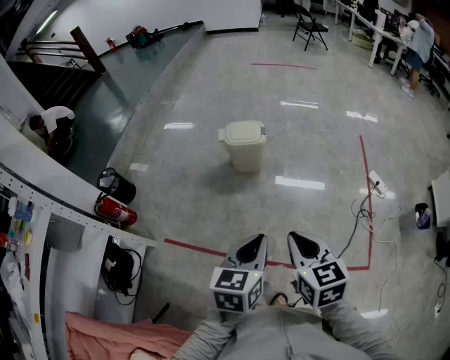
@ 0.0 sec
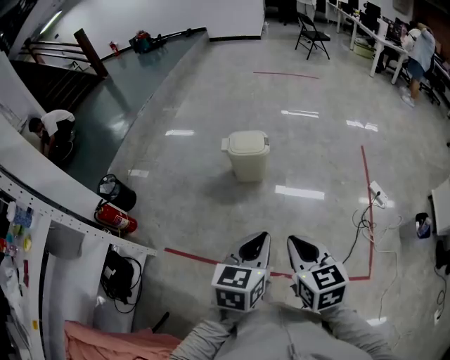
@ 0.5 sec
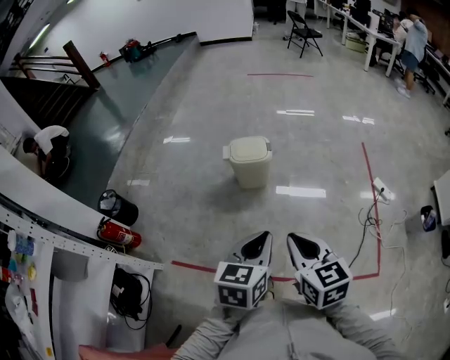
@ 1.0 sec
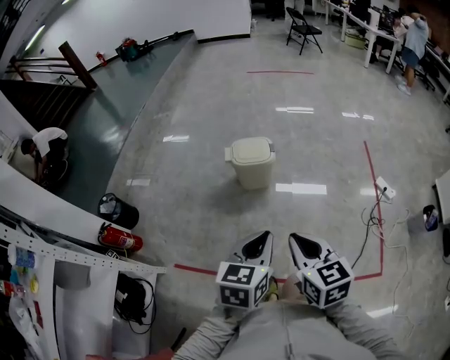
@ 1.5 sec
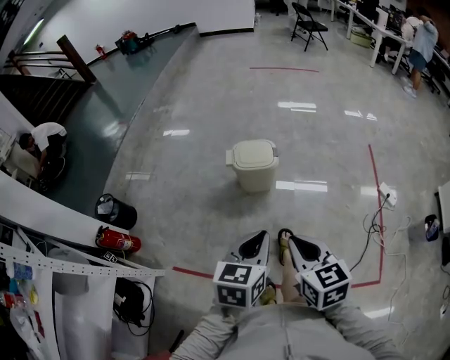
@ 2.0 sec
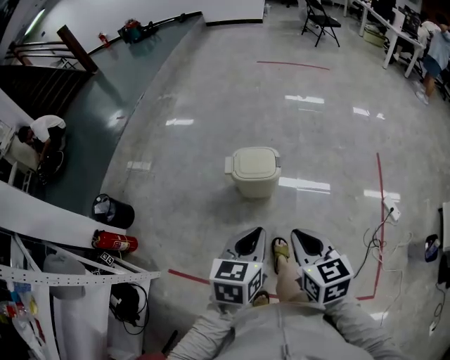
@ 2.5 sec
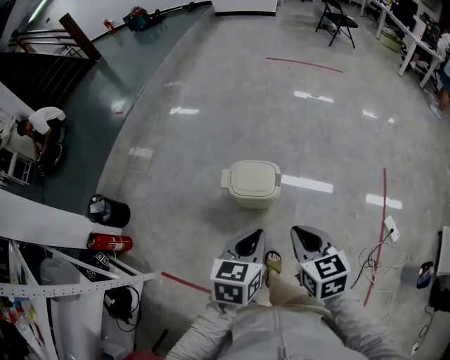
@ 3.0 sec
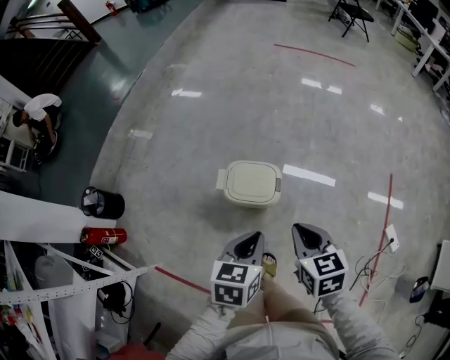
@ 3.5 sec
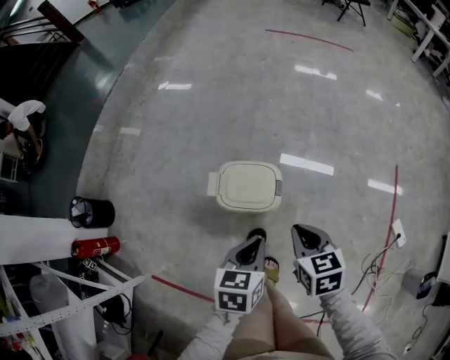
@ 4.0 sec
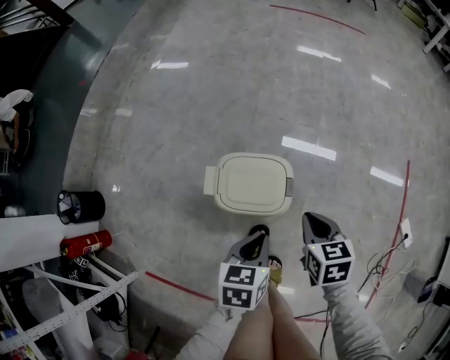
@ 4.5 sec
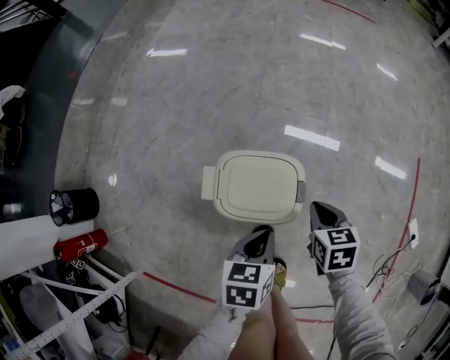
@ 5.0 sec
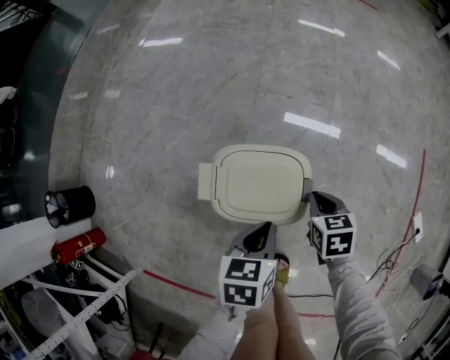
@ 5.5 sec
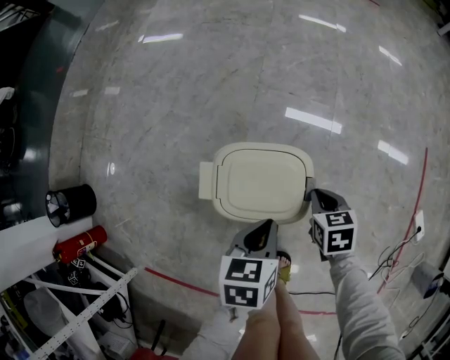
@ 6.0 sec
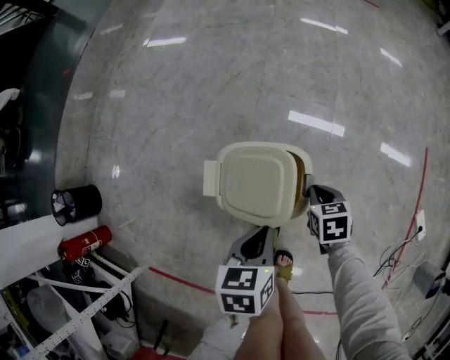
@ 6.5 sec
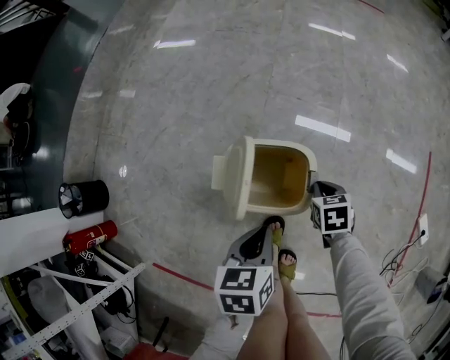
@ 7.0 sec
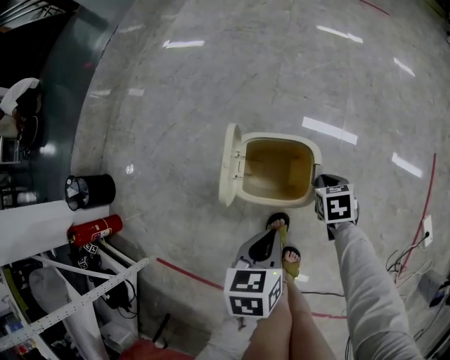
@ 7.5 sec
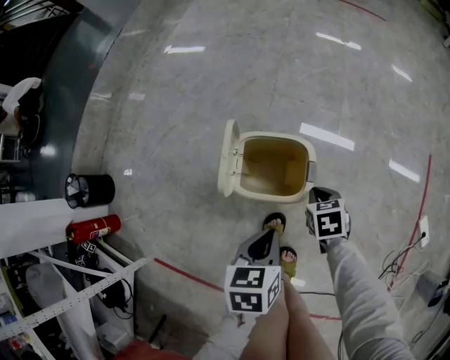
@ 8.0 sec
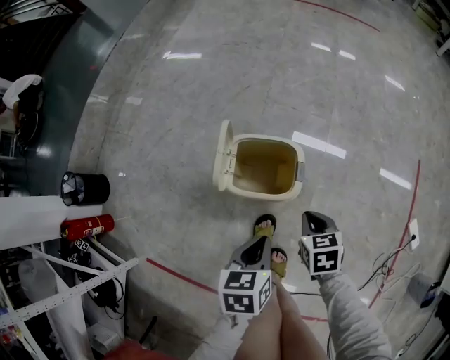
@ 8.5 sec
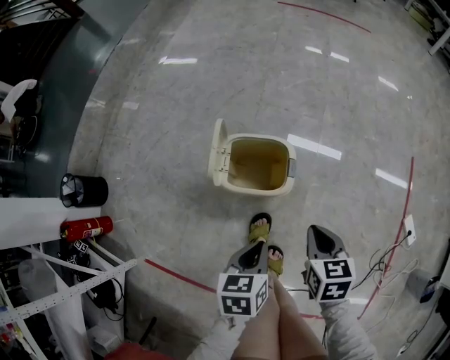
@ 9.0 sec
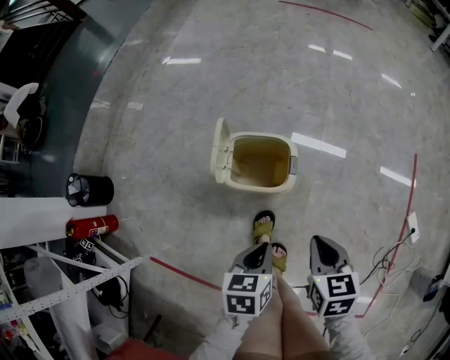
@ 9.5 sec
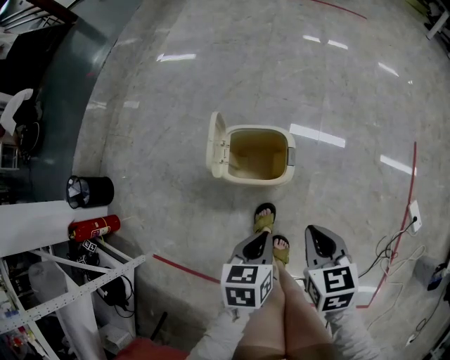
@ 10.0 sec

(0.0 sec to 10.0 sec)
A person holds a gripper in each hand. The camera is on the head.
0.0 sec - 2.0 sec: Both grippers move forward and to the left, roughly 20 cm.
2.0 sec - 4.0 sec: Both grippers travel together forward and downward, some 40 cm.
4.0 sec - 6.0 sec: The grippers both shift downward and forward by roughly 25 cm.
6.0 sec - 8.0 sec: The left gripper is displaced backward and upward by approximately 10 cm; the right gripper shifts by roughly 5 cm.
8.0 sec - 10.0 sec: The left gripper travels backward by approximately 5 cm. Meanwhile the right gripper is displaced upward and backward by some 25 cm.

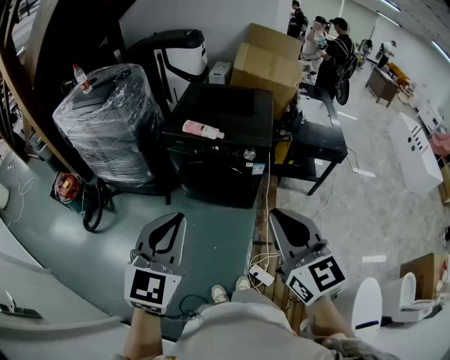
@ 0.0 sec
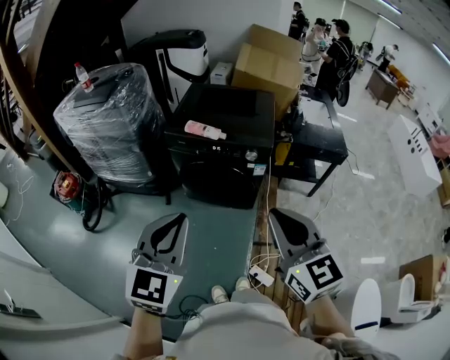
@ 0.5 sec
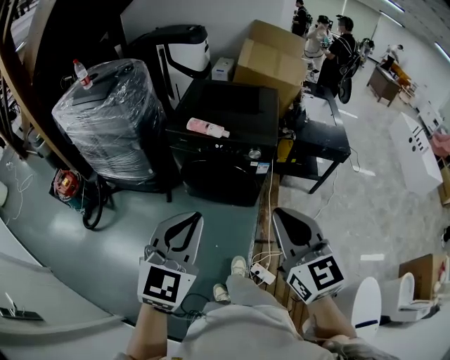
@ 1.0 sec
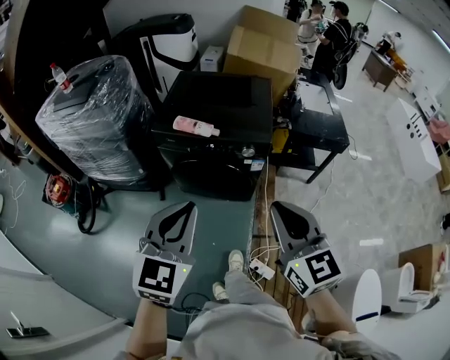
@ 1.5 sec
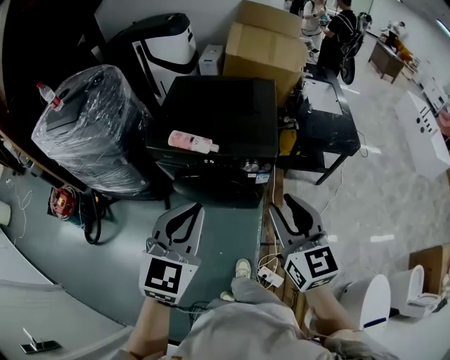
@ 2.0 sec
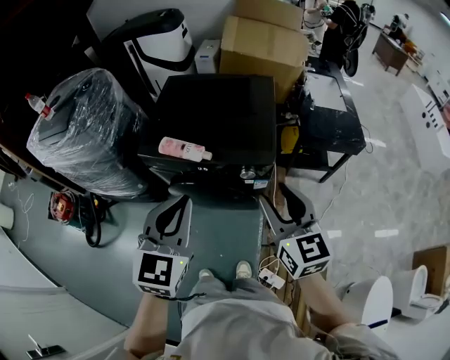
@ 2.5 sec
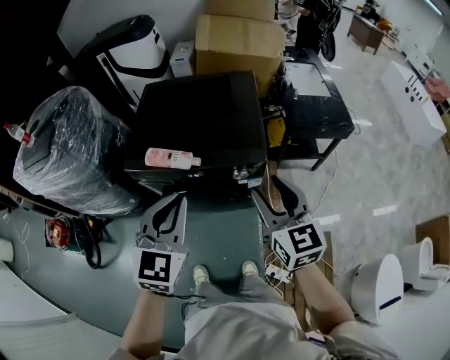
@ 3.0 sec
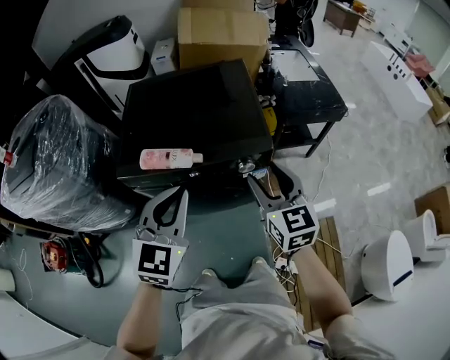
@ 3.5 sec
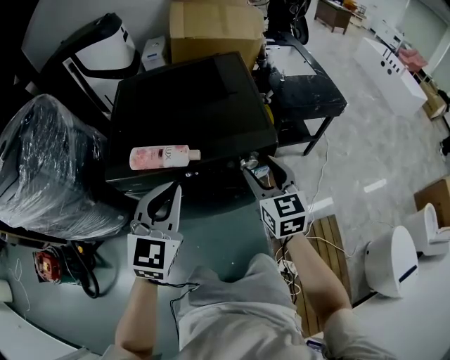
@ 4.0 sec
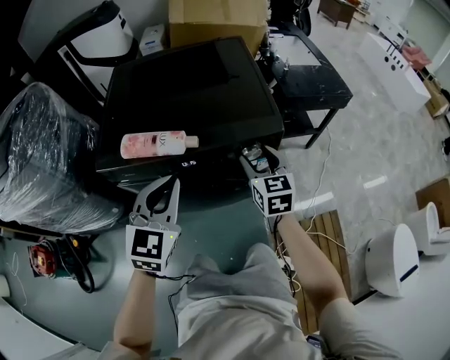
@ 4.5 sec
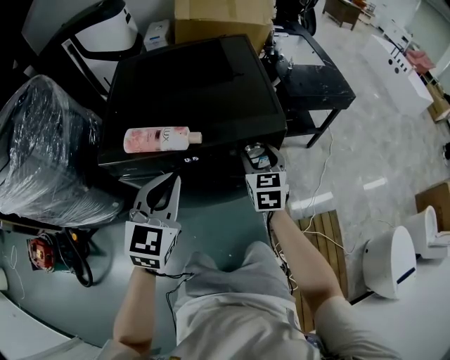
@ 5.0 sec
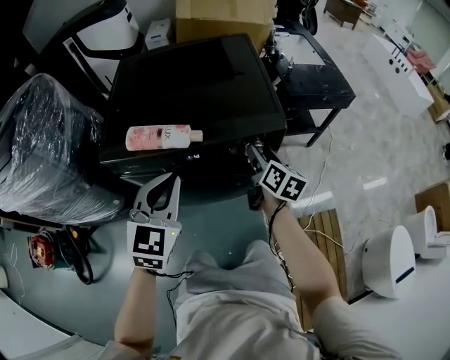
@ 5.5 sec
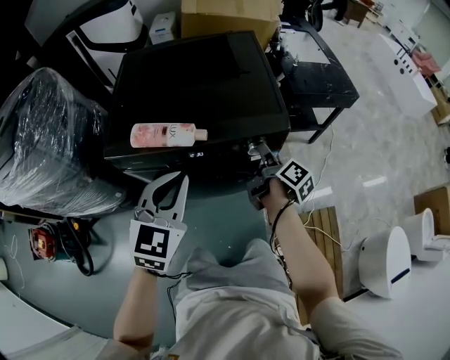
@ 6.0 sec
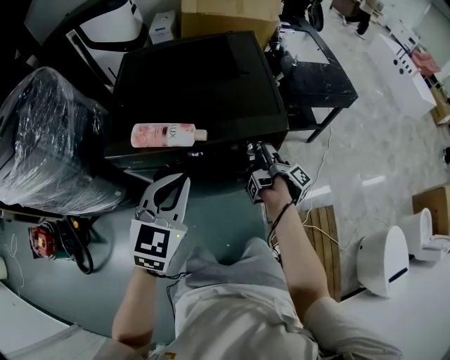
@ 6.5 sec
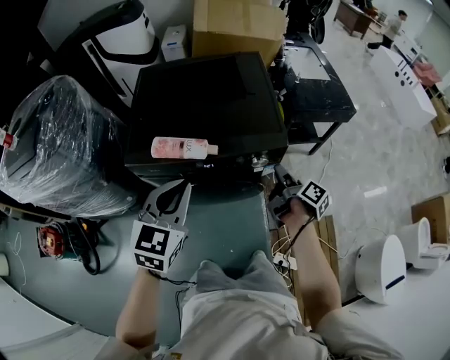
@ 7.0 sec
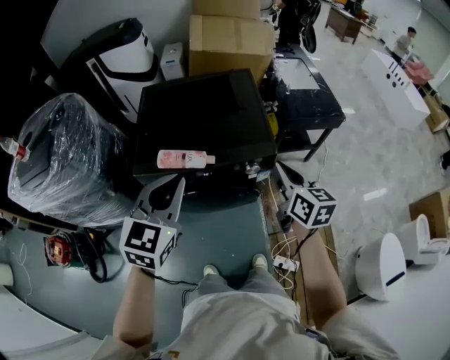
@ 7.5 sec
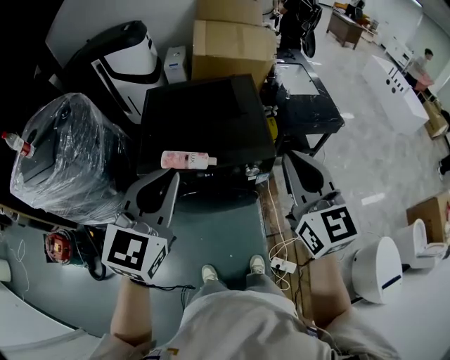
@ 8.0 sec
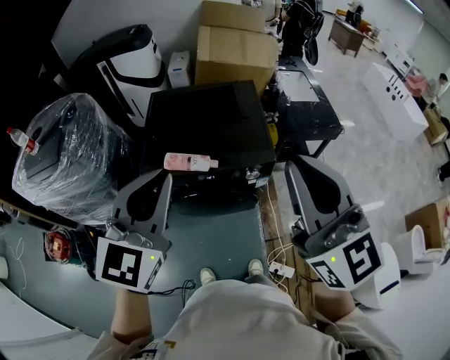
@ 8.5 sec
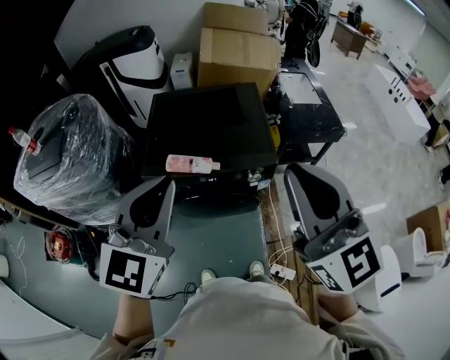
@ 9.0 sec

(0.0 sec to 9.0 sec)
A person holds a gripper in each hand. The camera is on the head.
0.0 sec - 2.0 sec: Both grippers move forward, roughly 20 cm. The right gripper opens up.
2.0 sec - 4.5 sec: Both grippers move downward and forward, some 35 cm. The right gripper turns by approximately 20 degrees, and opens its fingers.
4.5 sec - 7.0 sec: The right gripper goes some 5 cm to the right, moves approximately 5 cm downward and comes back, rolls clockwise, seen from behind, by approximately 80 degrees, and closes; the left gripper is displaced upward by about 10 cm.
7.0 sec - 9.0 sec: The right gripper is displaced upward by about 50 cm, rolls counterclockwise, seen from behind, by about 90 degrees, and closes. Meanwhile the left gripper moves upward, some 25 cm, and rotates some 20 degrees.

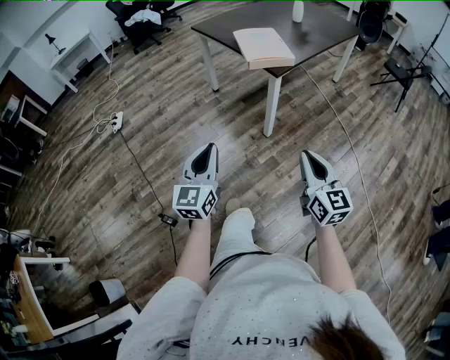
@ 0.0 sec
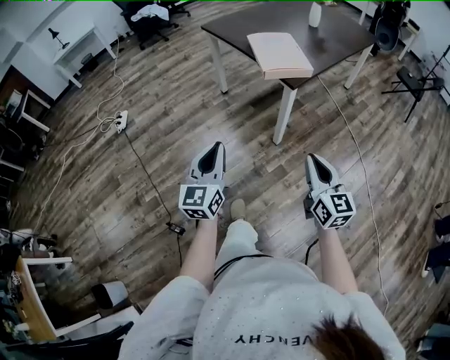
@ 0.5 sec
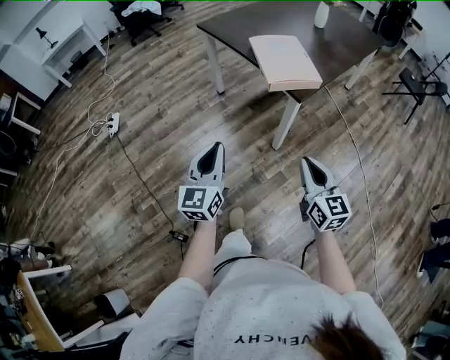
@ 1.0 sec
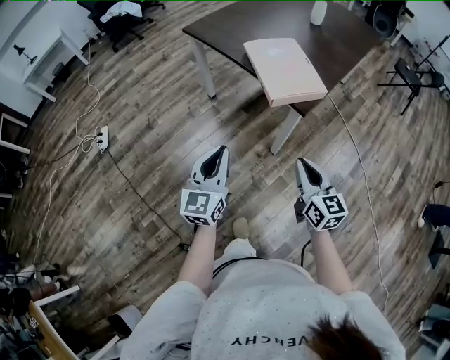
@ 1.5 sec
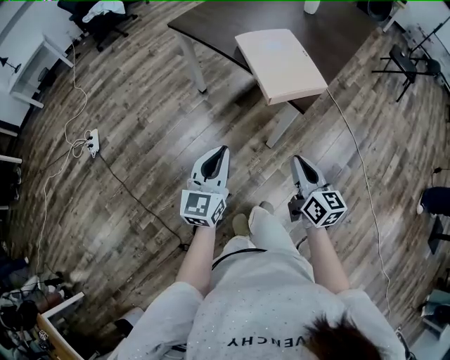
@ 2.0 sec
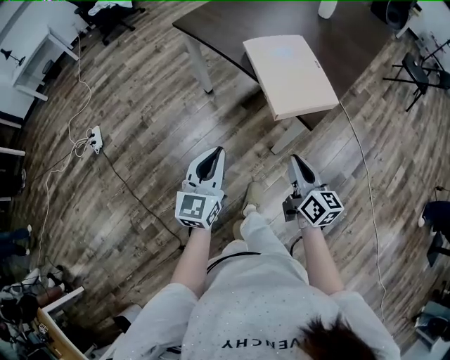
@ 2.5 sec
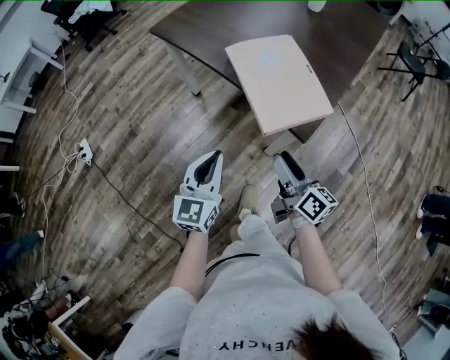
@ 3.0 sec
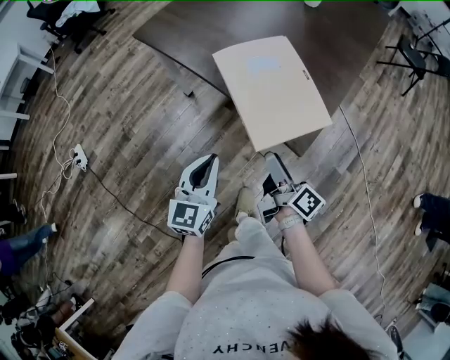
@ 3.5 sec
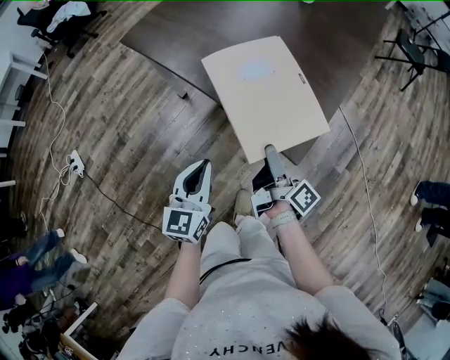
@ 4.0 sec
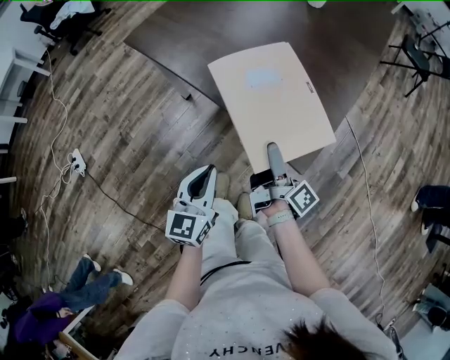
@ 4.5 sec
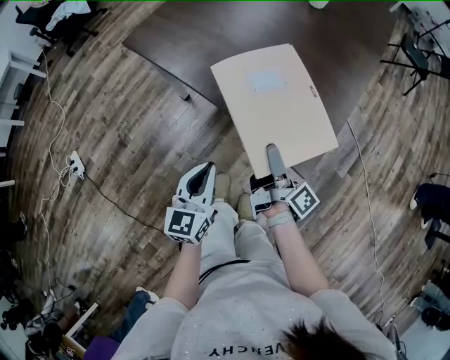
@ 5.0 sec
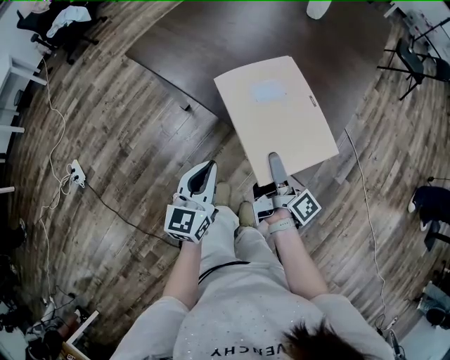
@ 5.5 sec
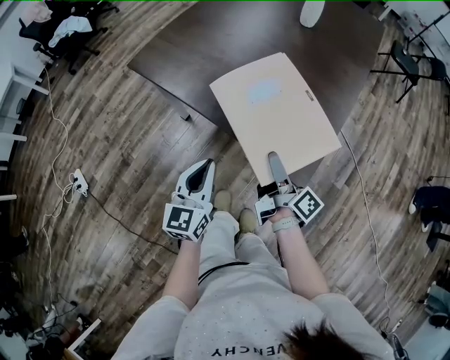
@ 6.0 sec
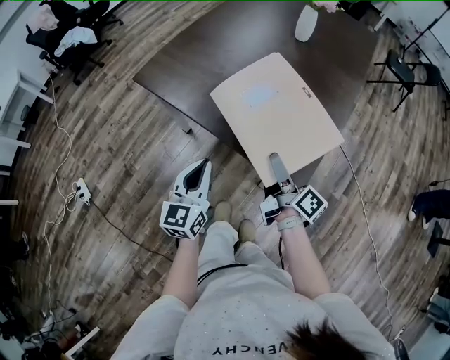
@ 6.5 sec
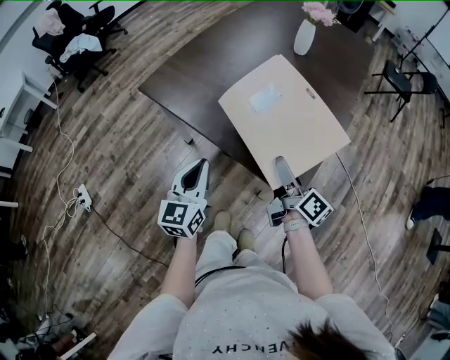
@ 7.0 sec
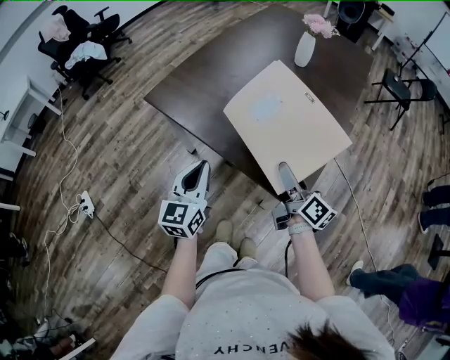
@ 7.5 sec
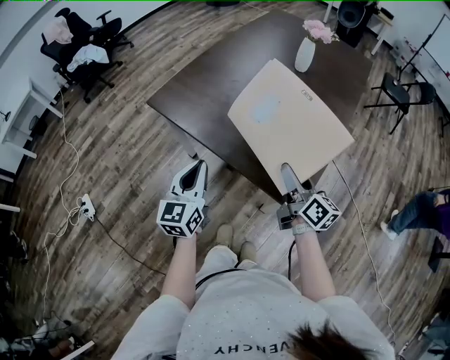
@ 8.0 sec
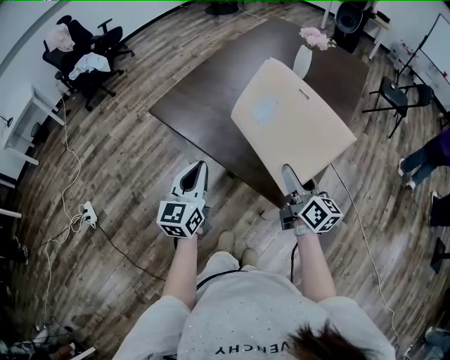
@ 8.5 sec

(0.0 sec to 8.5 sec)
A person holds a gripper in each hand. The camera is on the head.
0.0 sec - 2.0 sec: The pair of grippers is taken forward, about 40 cm. The right gripper rotates approximately 20 degrees.
2.0 sec - 4.0 sec: The grippers both shift forward by roughly 25 cm. The right gripper twists roughly 60 degrees clockwise, seen from behind, and opens its fingers.
4.0 sec - 6.5 sec: The left gripper travels forward and upward by about 10 cm; the right gripper goes about 10 cm upward and forward, and closes up.
6.5 sec - 8.5 sec: The two grippers go approximately 10 cm upward. The right gripper turns by some 30 degrees.
